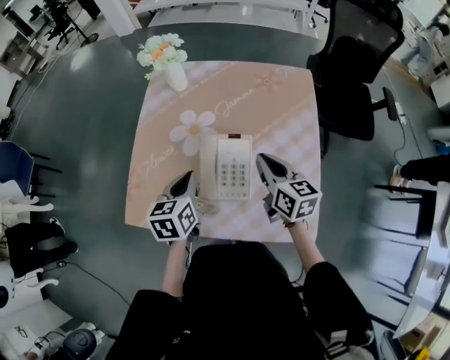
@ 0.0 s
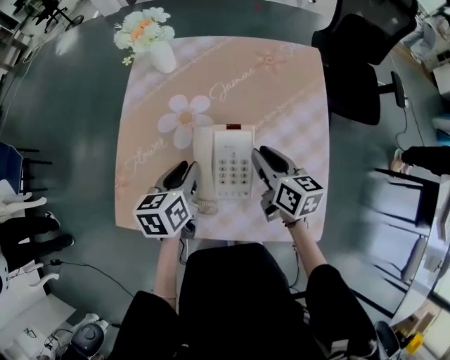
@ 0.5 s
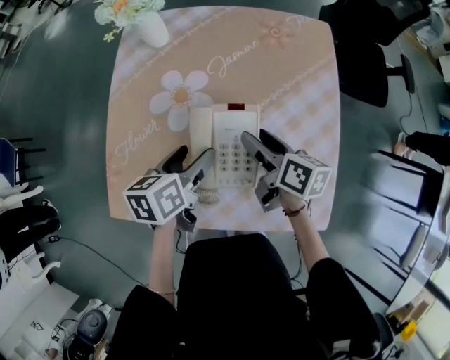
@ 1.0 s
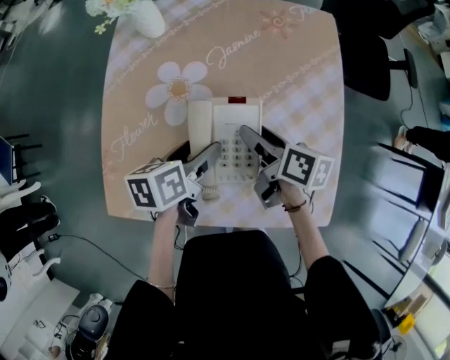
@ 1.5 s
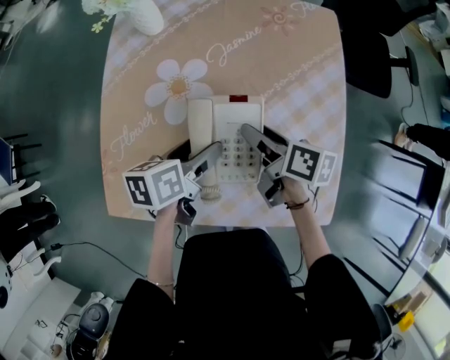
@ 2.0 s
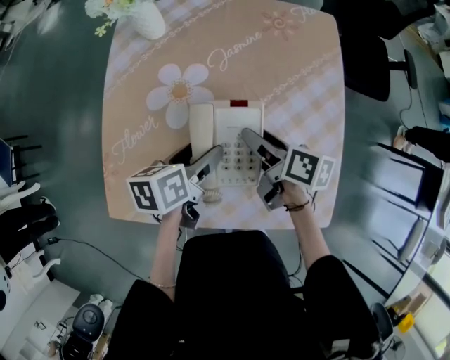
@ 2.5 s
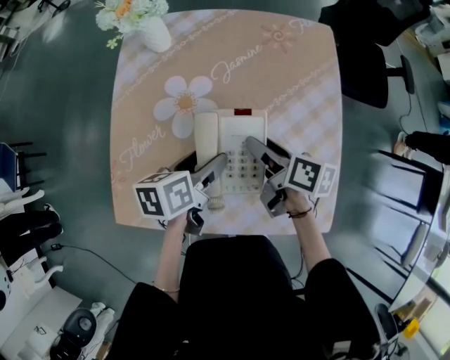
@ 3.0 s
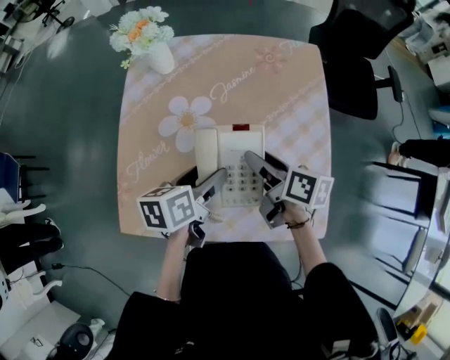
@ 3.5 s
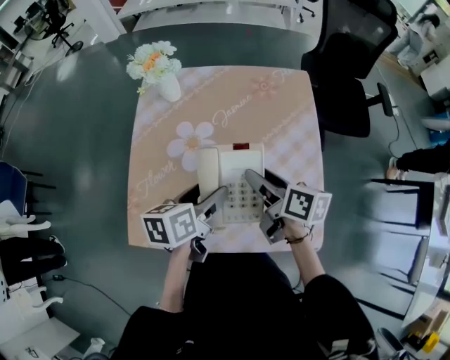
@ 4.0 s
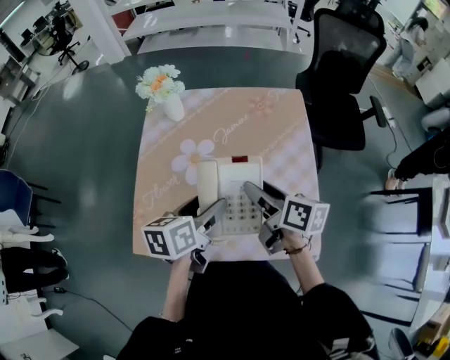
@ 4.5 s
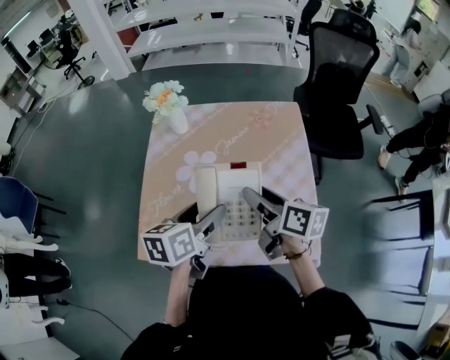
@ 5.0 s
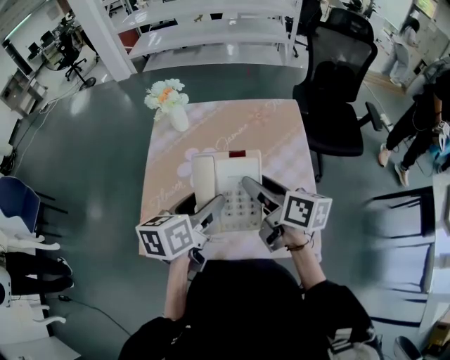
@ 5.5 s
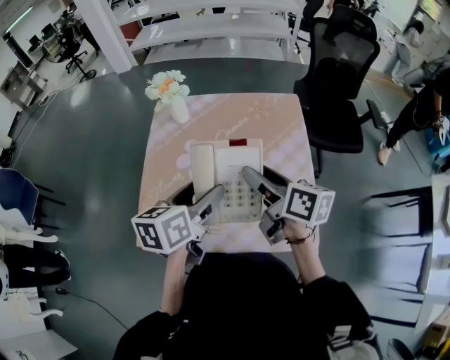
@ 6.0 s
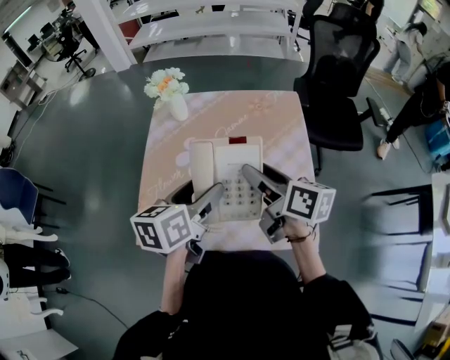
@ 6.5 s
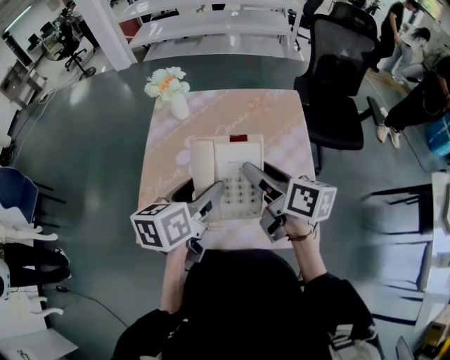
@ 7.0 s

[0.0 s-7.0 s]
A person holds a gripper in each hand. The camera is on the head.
0.0 to 2.0 s: The grippers both shift downward by roughly 10 cm. The left gripper rotates some 30 degrees, and opens. Meanwhile the right gripper changes its angle by some 40 degrees, and opens.
2.0 to 3.5 s: The grippers both shift upward by roughly 5 cm.
3.5 to 5.0 s: Both grippers travel together upward, some 15 cm.
5.0 to 7.0 s: The grippers stay close to where they were, moving slightly.

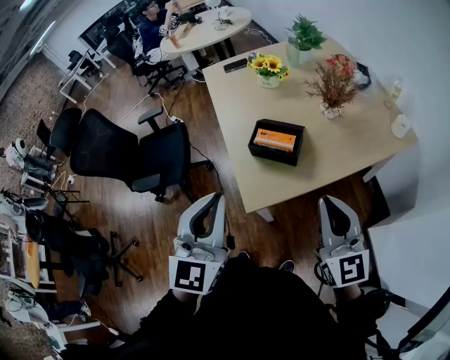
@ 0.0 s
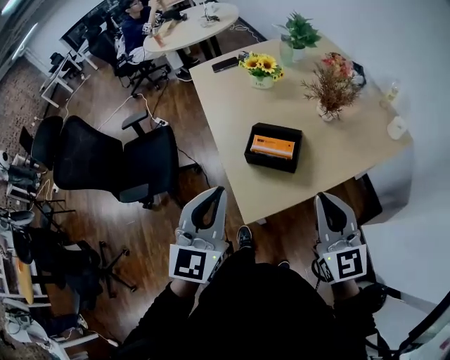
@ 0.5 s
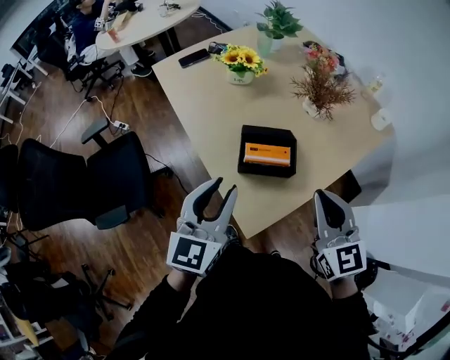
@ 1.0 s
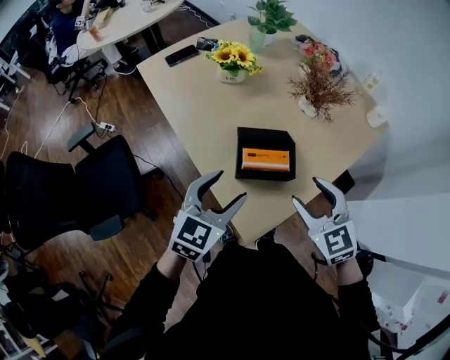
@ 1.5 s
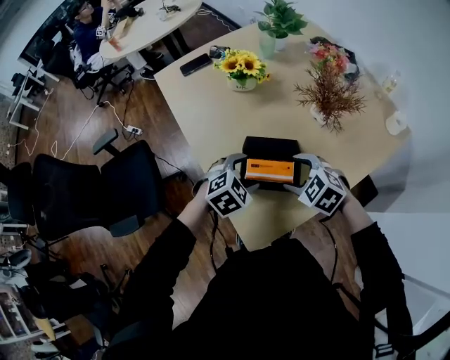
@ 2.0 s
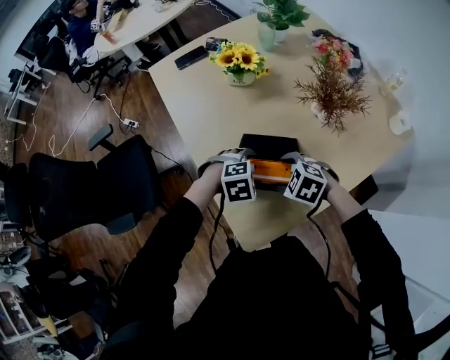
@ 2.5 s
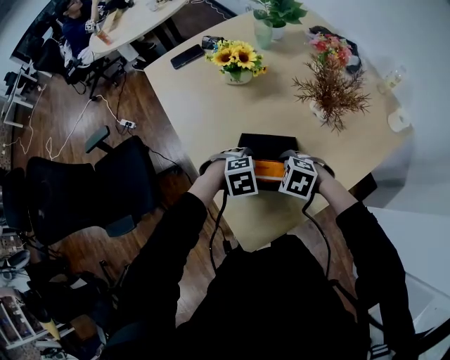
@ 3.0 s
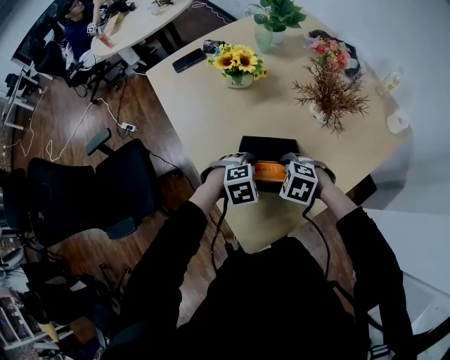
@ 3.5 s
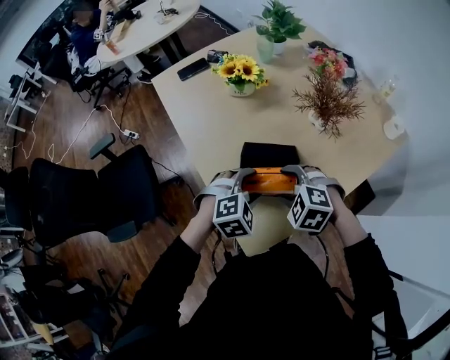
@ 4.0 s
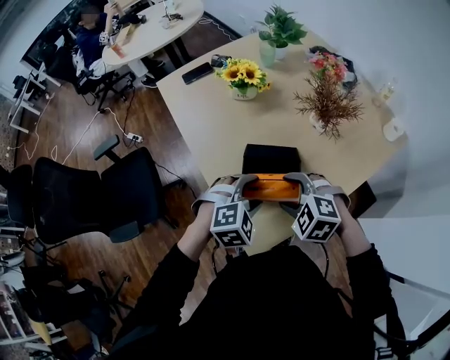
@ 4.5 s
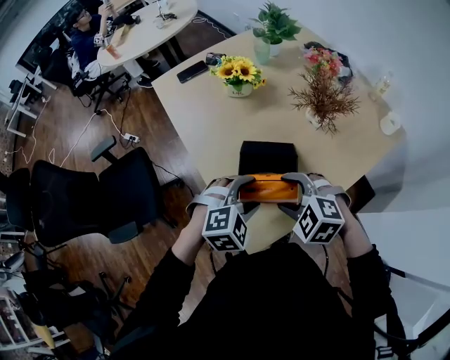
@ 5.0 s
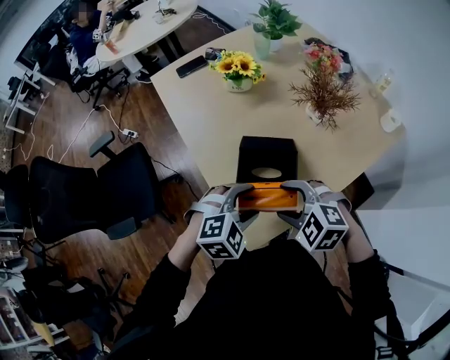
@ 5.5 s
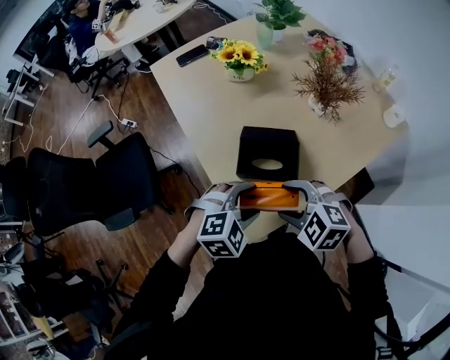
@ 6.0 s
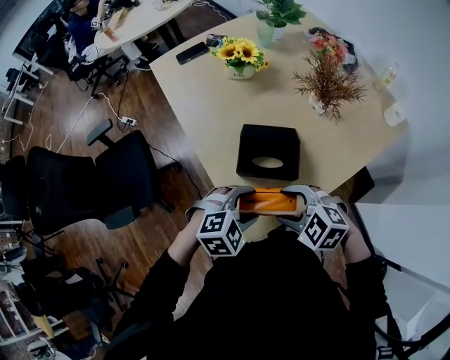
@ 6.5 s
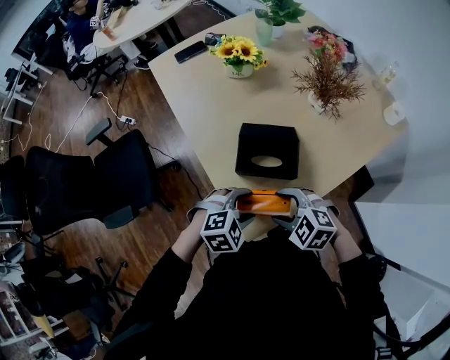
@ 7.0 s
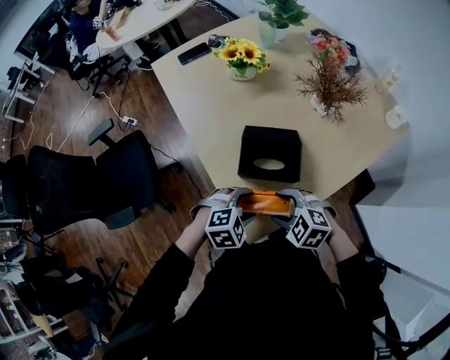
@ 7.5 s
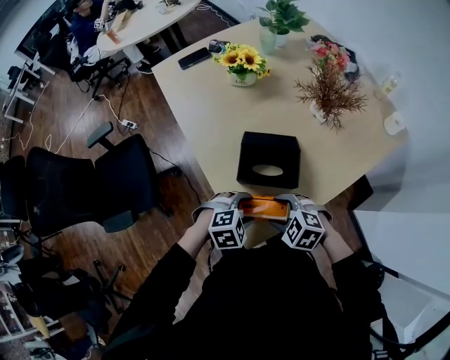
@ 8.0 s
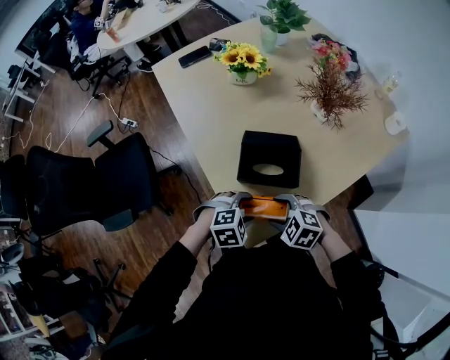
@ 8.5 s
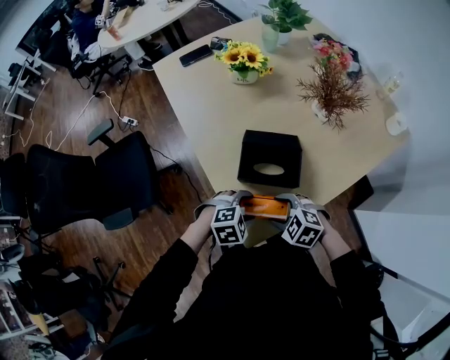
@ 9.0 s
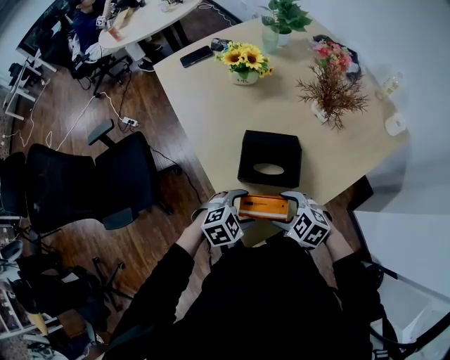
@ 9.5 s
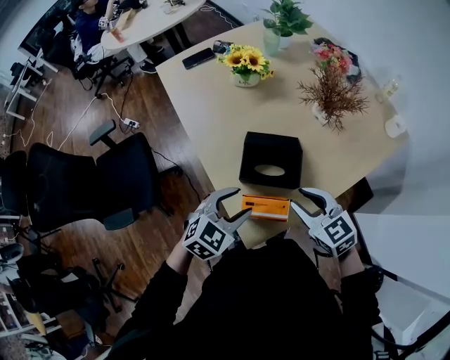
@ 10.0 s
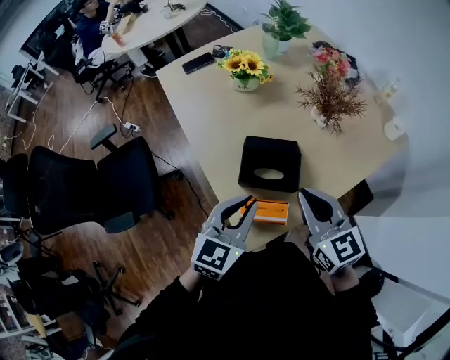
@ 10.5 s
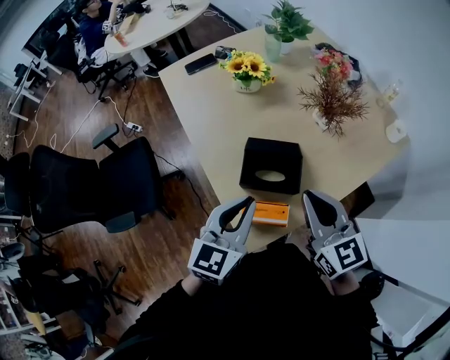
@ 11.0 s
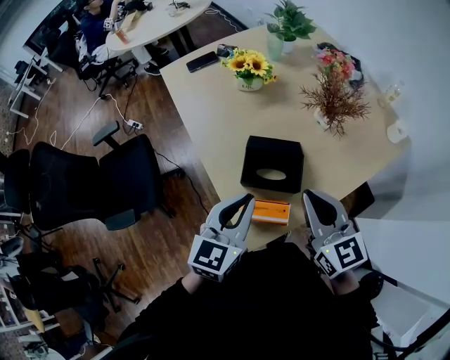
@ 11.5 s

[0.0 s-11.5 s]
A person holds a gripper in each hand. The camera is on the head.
0.0 to 2.0 s: The right gripper goes some 35 cm forward, downward and to the left, points its fingers about 60 degrees further downward, and opens up; the left gripper shifts about 40 cm forward and downward, angles its fingers downward, by roughly 50 degrees, and opens up.
2.0 to 4.0 s: The right gripper reaches roughly 10 cm downward, then returns; the left gripper goes downward and returns, approximately 10 cm each way.
4.0 to 6.0 s: The two grippers go approximately 10 cm backward.
6.0 to 7.5 s: Both grippers move downward, roughly 10 cm.
7.5 to 9.5 s: The grippers move only a little.
9.5 to 11.5 s: Both grippers travel together upward, roughly 20 cm. The left gripper tilts its fingers some 40 degrees upward, and closes; the right gripper points its fingers approximately 40 degrees further upward, and closes.

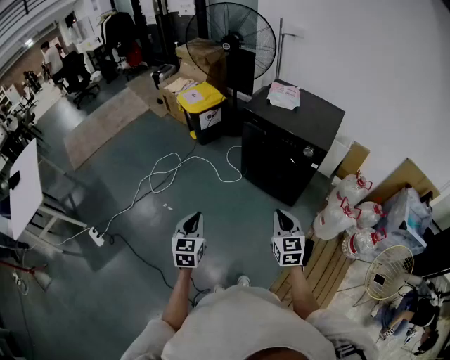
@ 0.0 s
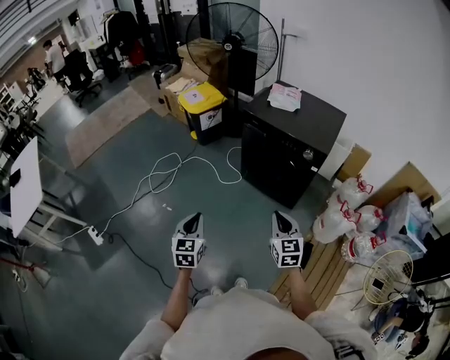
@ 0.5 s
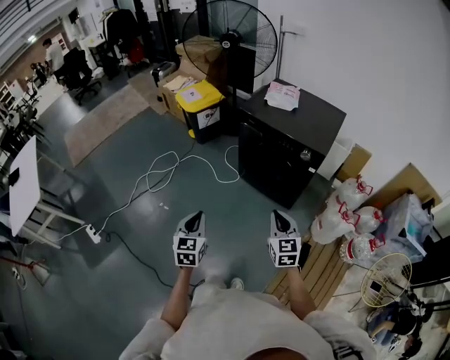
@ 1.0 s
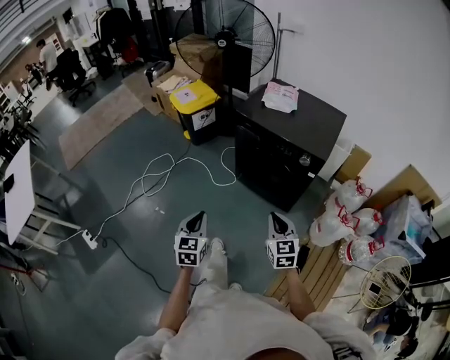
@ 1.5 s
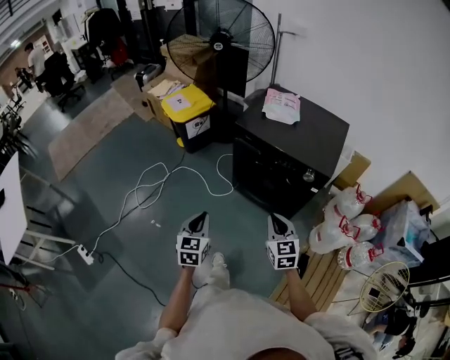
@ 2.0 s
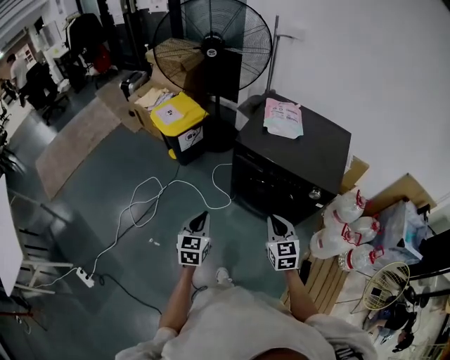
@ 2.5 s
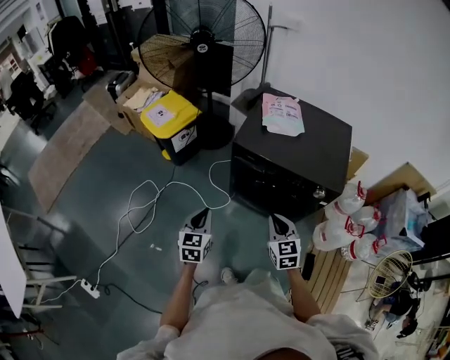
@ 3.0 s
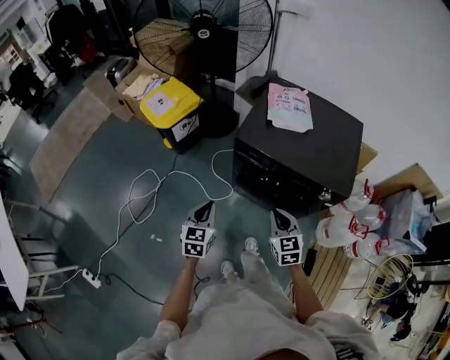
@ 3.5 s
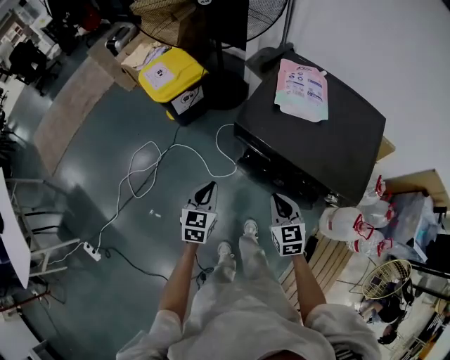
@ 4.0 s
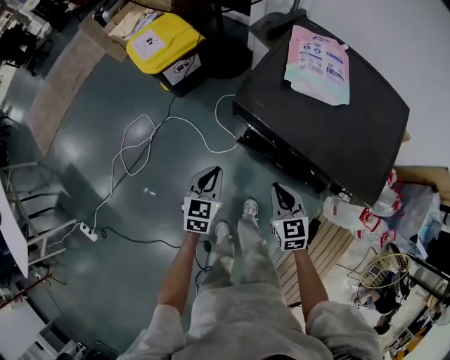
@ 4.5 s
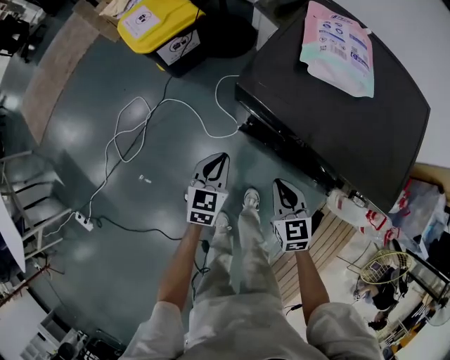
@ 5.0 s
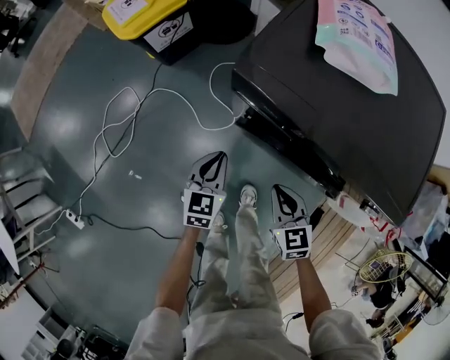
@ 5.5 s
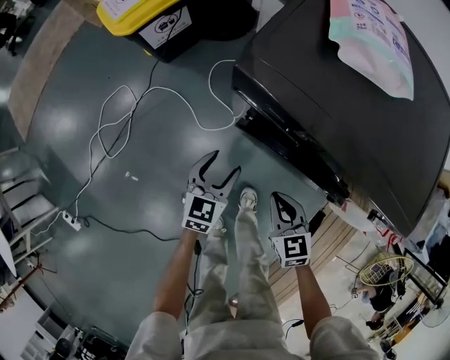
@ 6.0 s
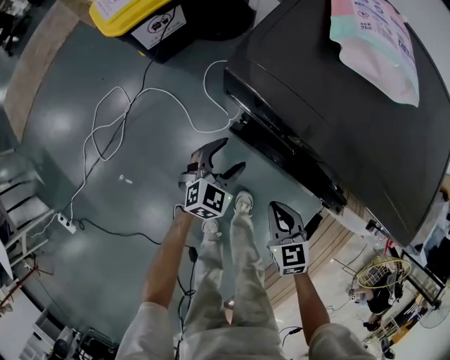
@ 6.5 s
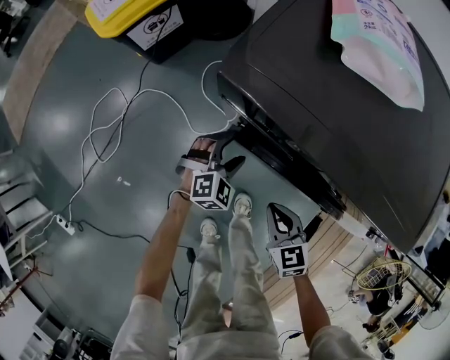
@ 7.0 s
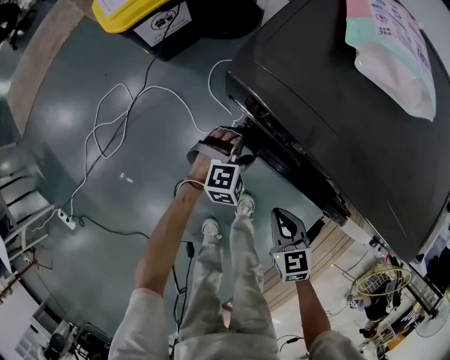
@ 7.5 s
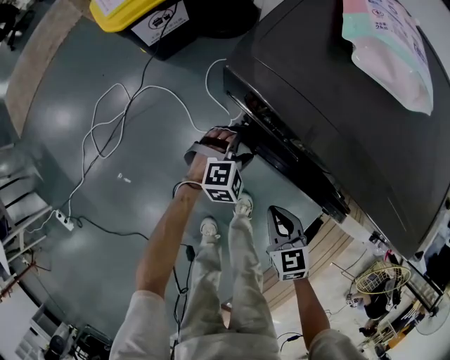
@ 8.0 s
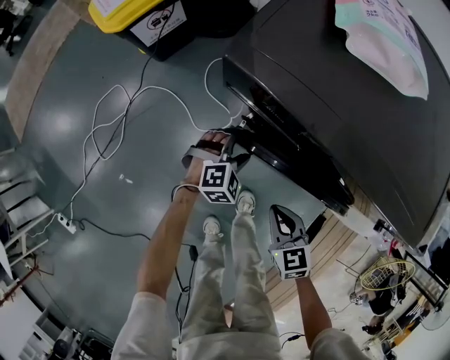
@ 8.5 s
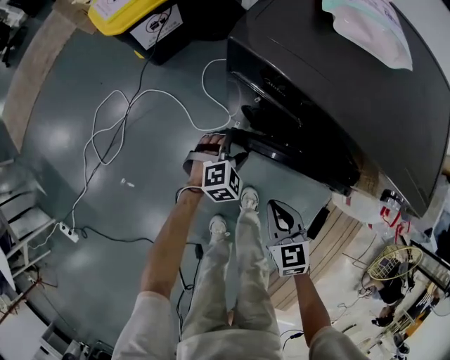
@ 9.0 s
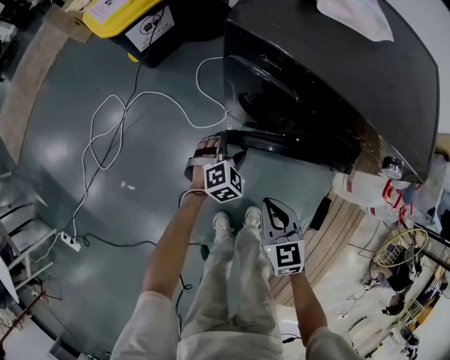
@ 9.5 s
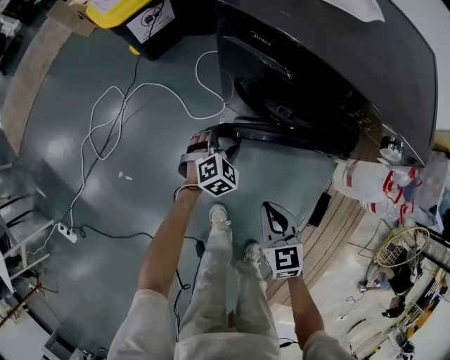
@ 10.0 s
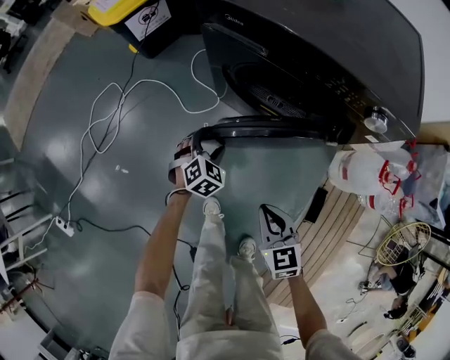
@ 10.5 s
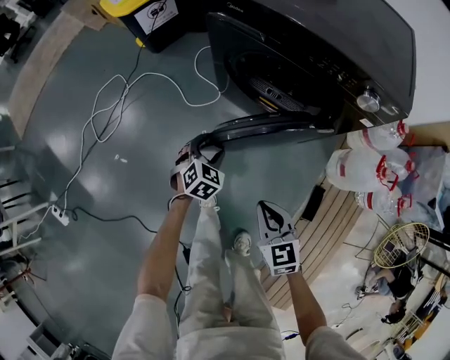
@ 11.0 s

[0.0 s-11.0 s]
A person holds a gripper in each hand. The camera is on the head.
0.0 to 2.0 s: Both grippers travel together forward, roughly 20 cm.
2.0 to 3.5 s: Both grippers move forward, some 25 cm.
3.5 to 5.5 s: The left gripper heads downward and forward, covering roughly 30 cm, while the right gripper is displaced downward by approximately 25 cm.
5.5 to 7.5 s: The left gripper shifts about 20 cm downward, to the right and forward, rolls clockwise, seen from behind, by roughly 60 degrees, and opens up. The right gripper is displaced downward by approximately 10 cm.
7.5 to 9.0 s: The two grippers go about 5 cm backward.
9.0 to 11.0 s: Both grippers travel together backward, approximately 25 cm. The left gripper swivels some 30 degrees.
